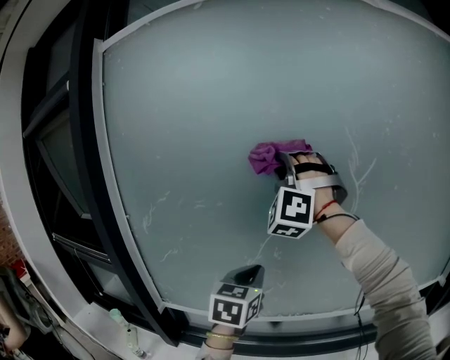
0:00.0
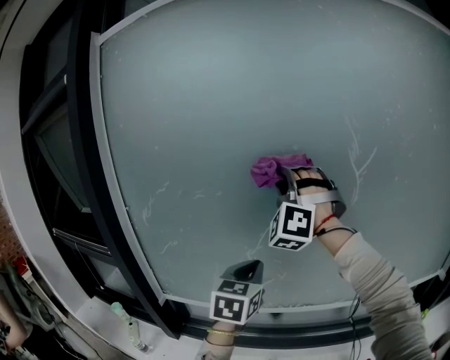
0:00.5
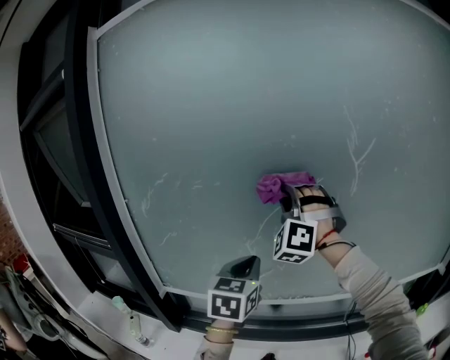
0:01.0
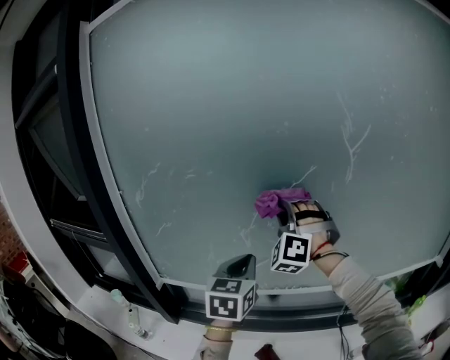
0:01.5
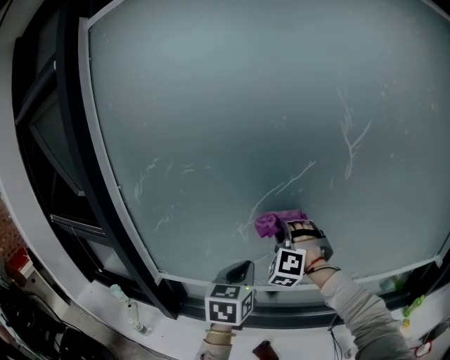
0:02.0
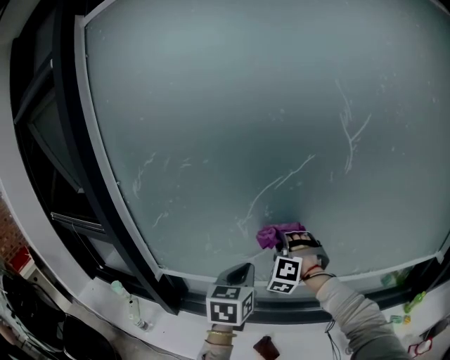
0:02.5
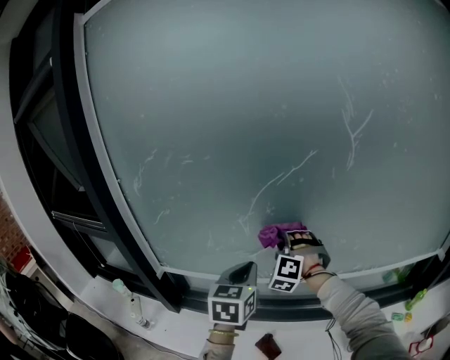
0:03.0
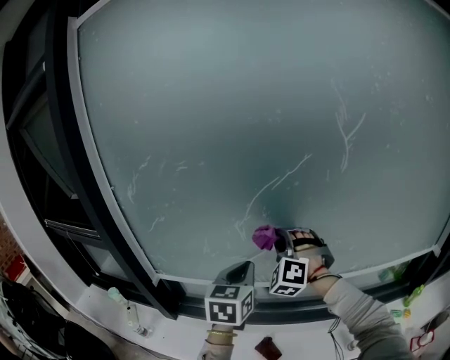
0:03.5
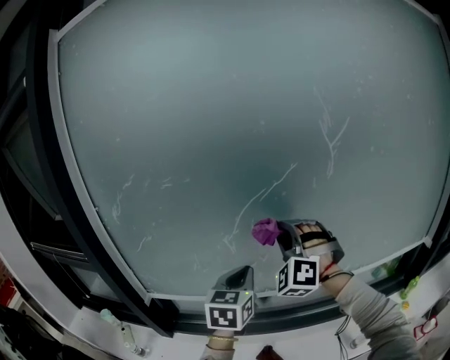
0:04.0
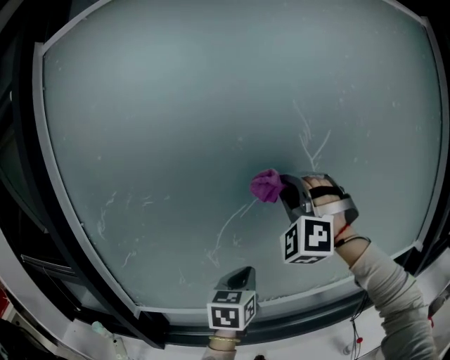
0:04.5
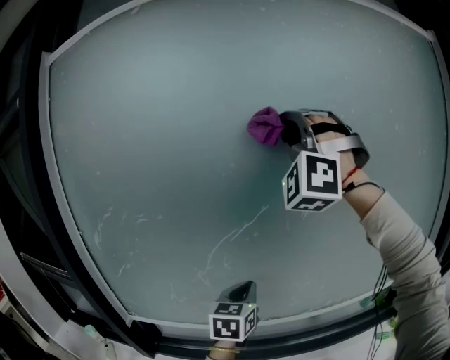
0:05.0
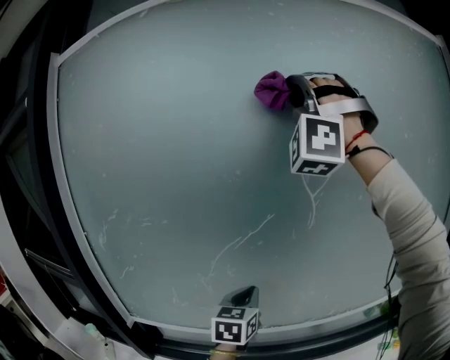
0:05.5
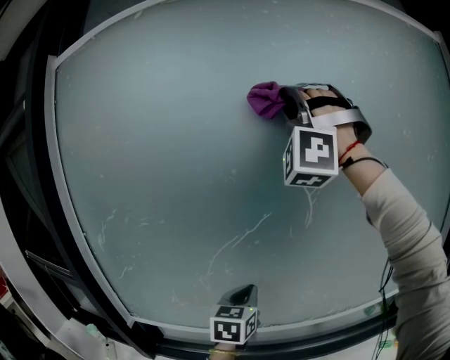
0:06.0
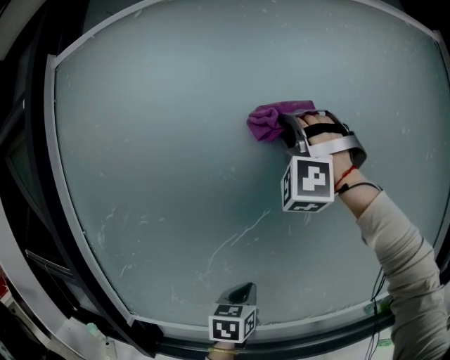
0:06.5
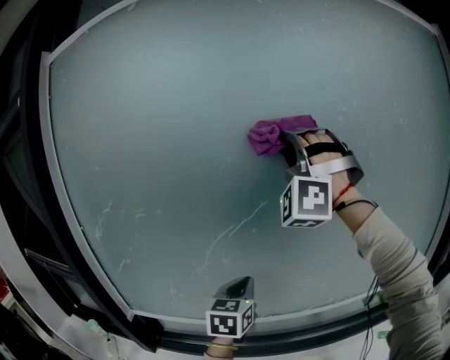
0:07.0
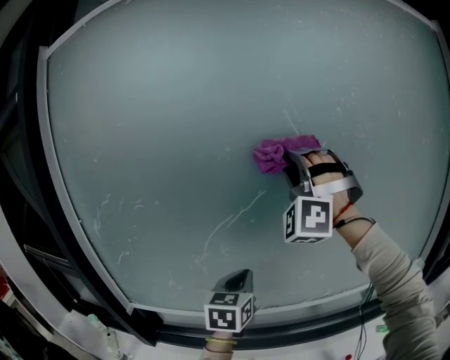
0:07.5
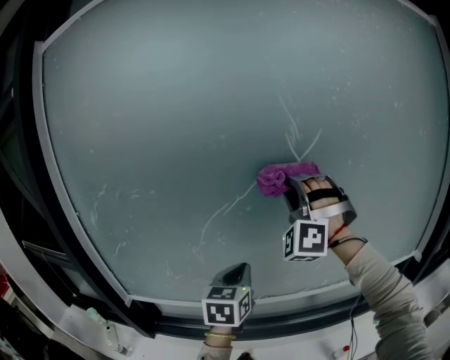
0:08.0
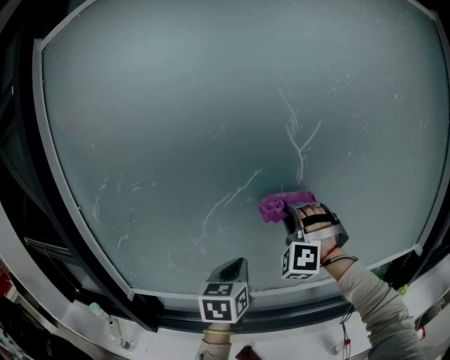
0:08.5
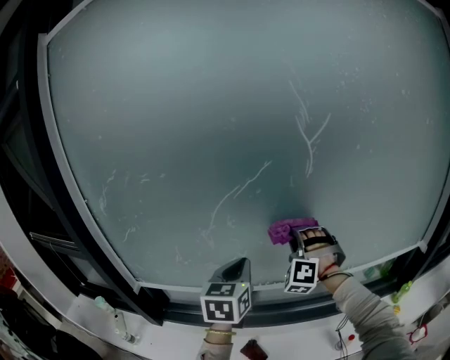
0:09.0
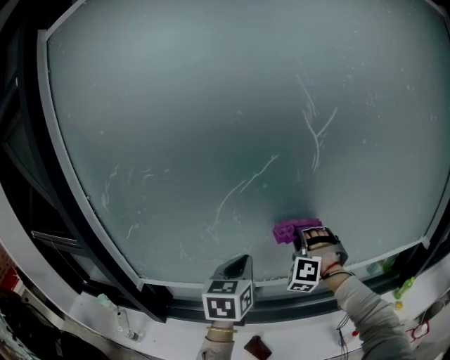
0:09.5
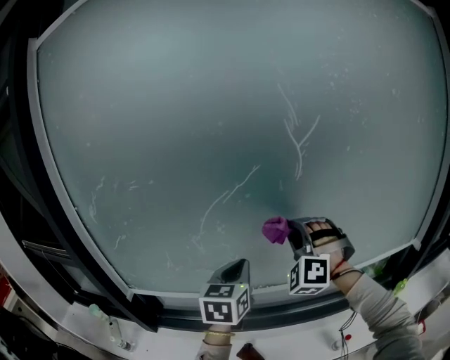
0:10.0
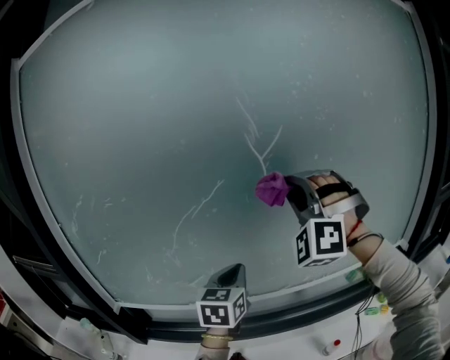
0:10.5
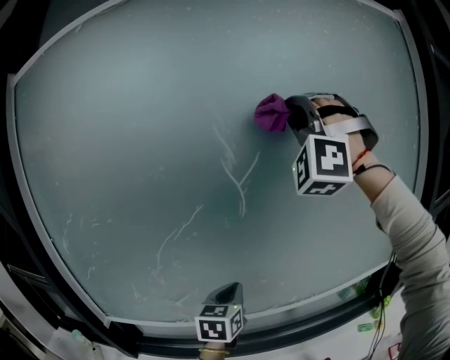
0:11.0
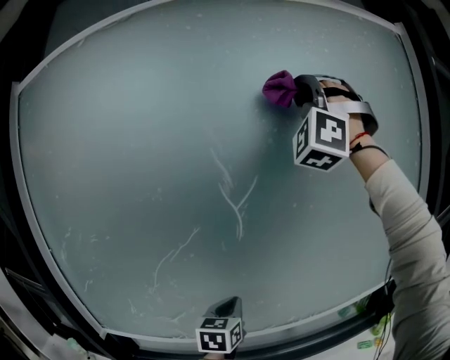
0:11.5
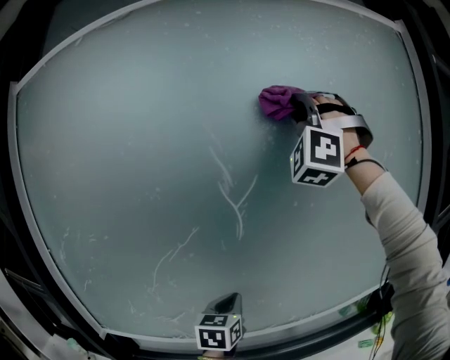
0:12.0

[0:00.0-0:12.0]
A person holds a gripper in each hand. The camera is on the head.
0:00.0 to 0:02.0: The right gripper shifts about 30 cm downward, and turns by some 30 degrees. Meanwhile the left gripper goes about 10 cm downward.
0:02.0 to 0:04.0: The right gripper reaches roughly 10 cm downward, then returns.
0:04.0 to 0:06.0: The left gripper shifts roughly 10 cm to the right and forward; the right gripper heads upward, covering roughly 40 cm, and angles its fingers upward, by about 40 degrees.
0:06.0 to 0:08.0: The right gripper heads downward, covering about 30 cm, and turns by roughly 20 degrees.
0:08.0 to 0:10.0: The right gripper travels downward by approximately 15 cm.
0:10.0 to 0:12.0: The right gripper shifts some 50 cm upward and to the right, and tips its fingers upward by approximately 40 degrees, while the left gripper travels to the right and forward by some 15 cm.

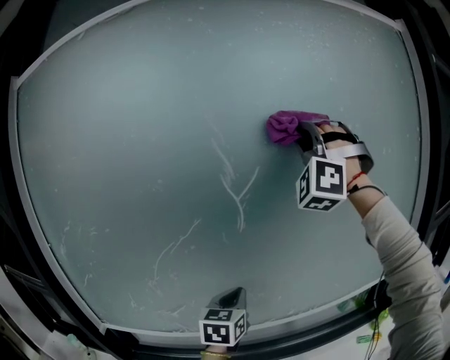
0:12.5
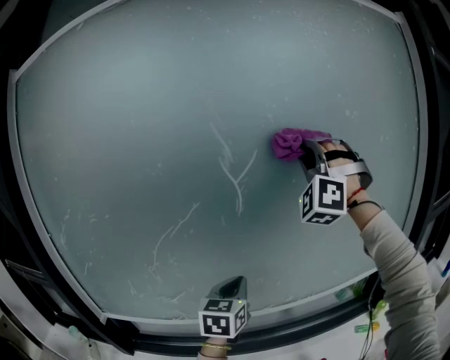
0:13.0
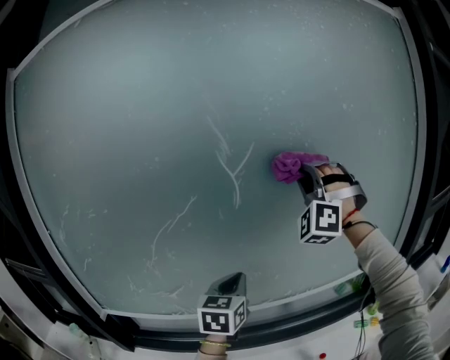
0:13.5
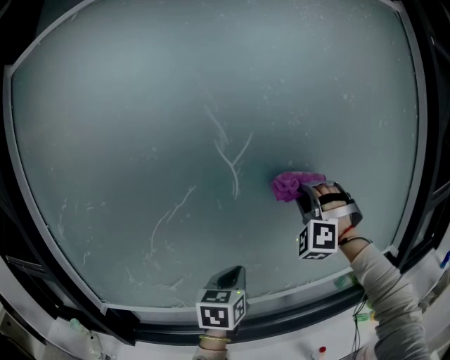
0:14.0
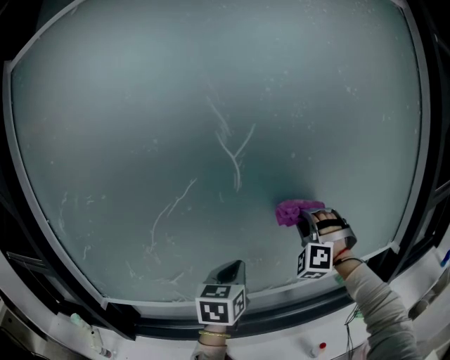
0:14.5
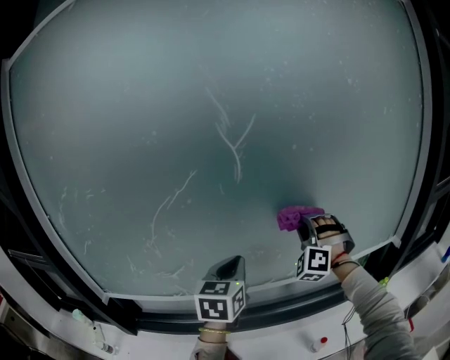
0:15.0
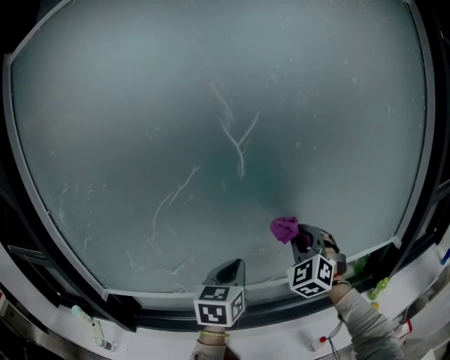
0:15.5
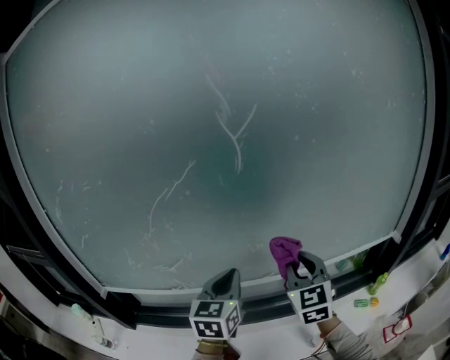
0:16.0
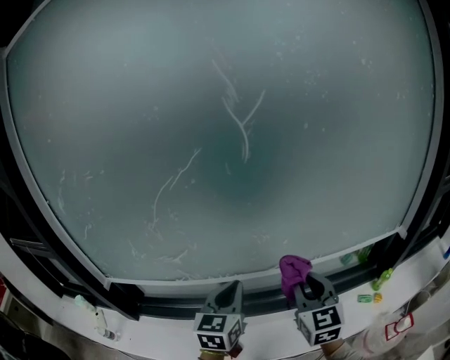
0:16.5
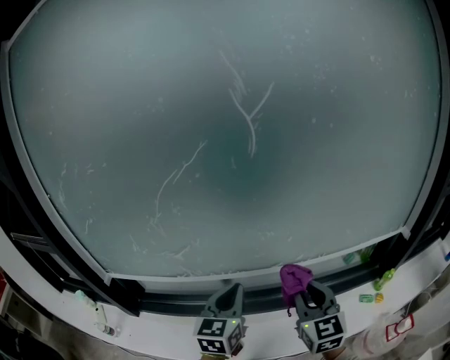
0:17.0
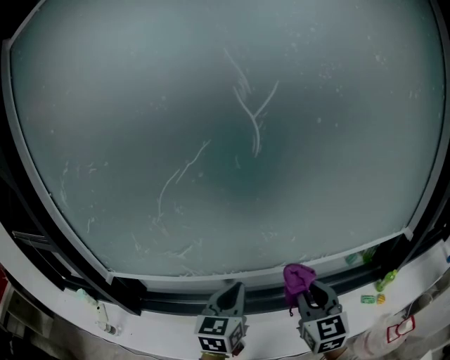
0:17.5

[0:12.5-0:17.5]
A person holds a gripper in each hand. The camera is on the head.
0:12.5 to 0:15.0: The right gripper heads downward, covering roughly 40 cm, and turns by about 30 degrees.
0:15.0 to 0:17.5: The right gripper goes approximately 20 cm backward and downward, and rolls clockwise, seen from behind, by approximately 80 degrees. The left gripper shifts about 15 cm downward and backward.

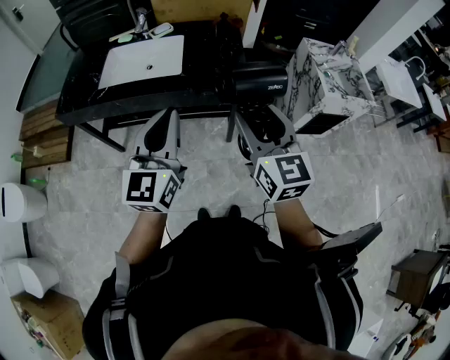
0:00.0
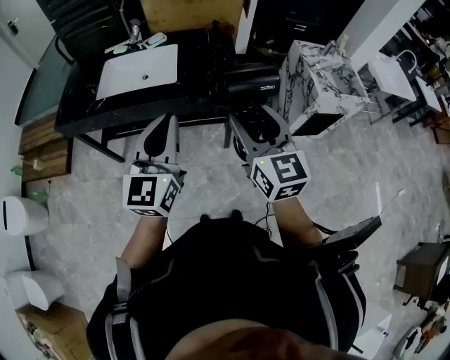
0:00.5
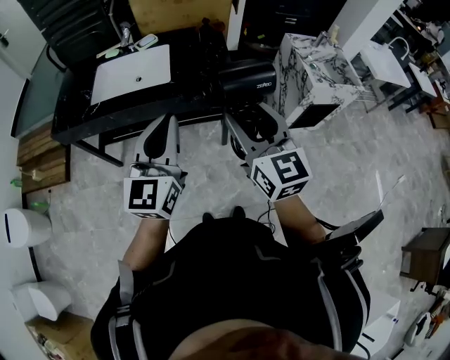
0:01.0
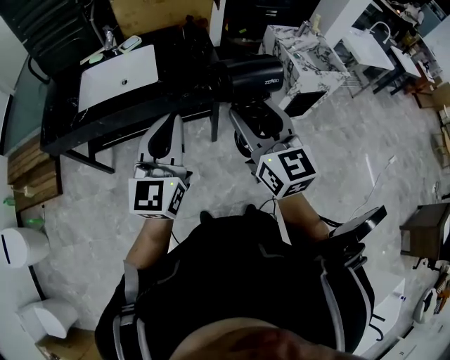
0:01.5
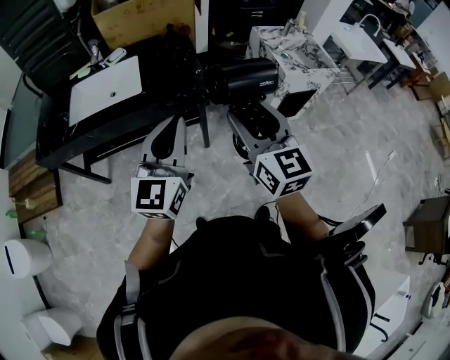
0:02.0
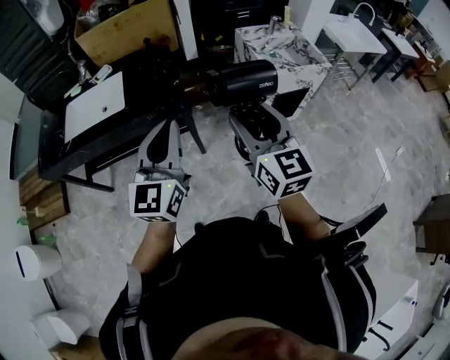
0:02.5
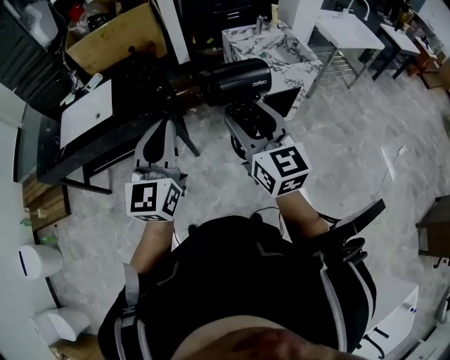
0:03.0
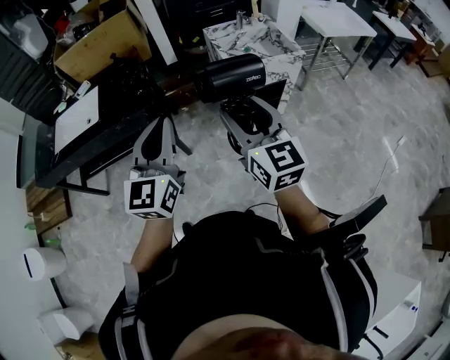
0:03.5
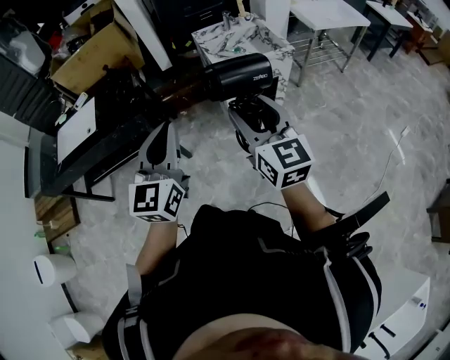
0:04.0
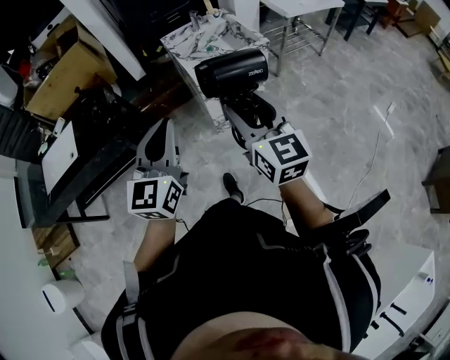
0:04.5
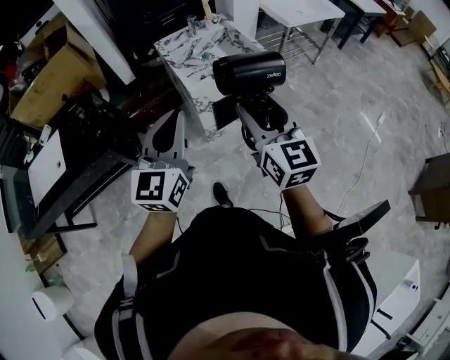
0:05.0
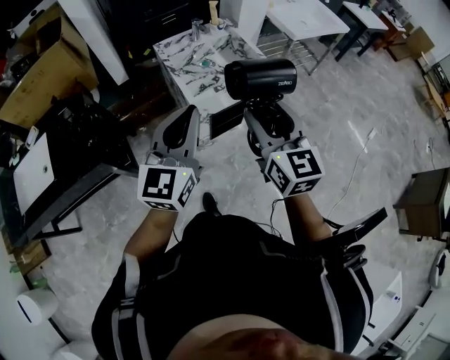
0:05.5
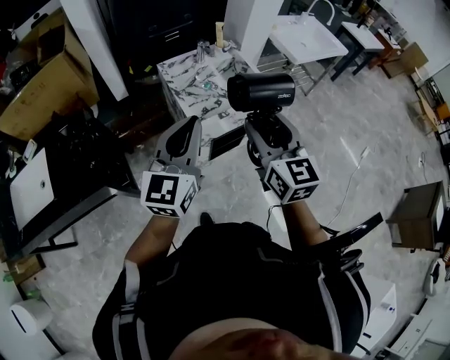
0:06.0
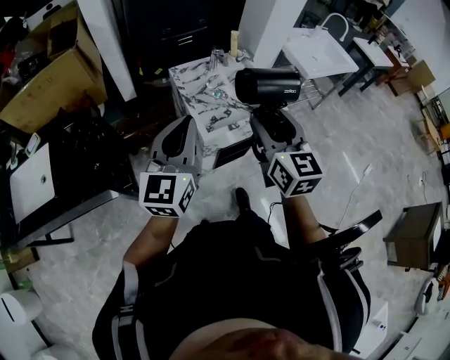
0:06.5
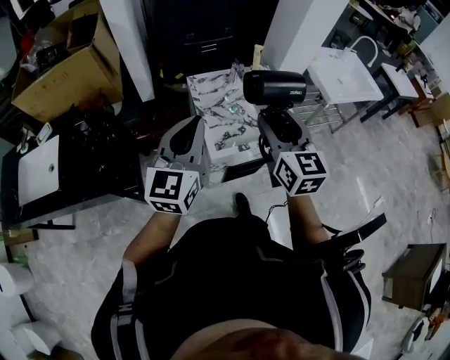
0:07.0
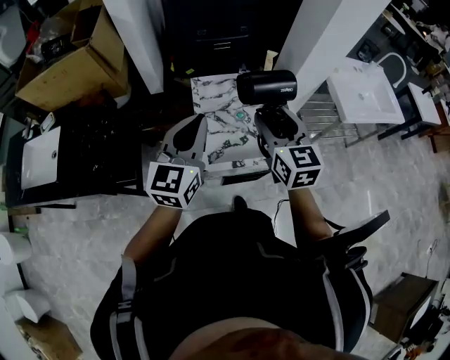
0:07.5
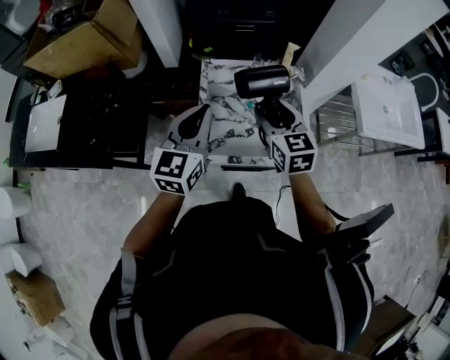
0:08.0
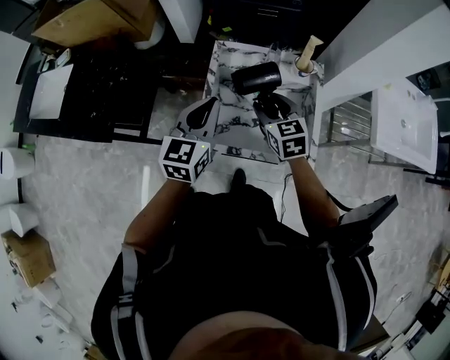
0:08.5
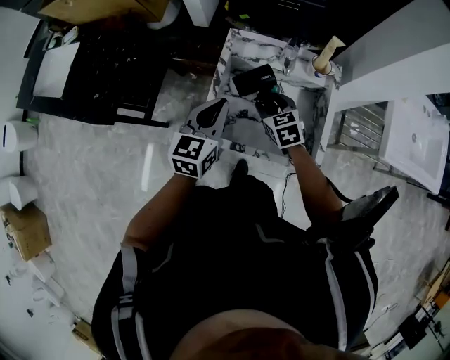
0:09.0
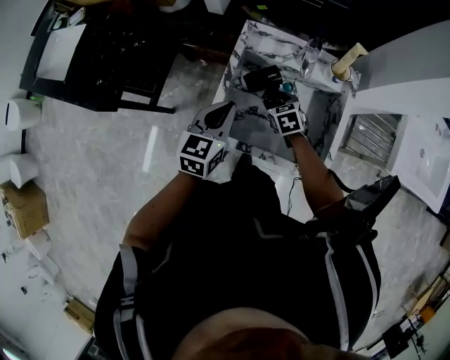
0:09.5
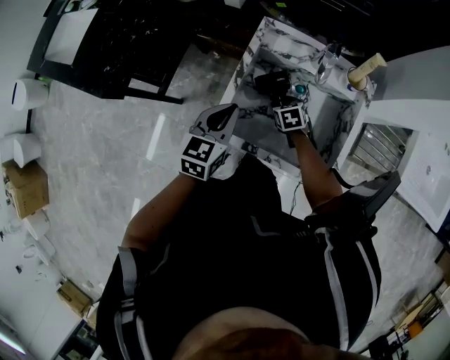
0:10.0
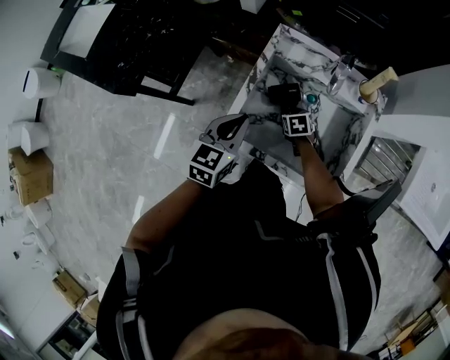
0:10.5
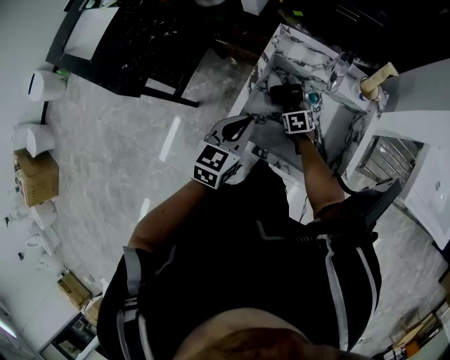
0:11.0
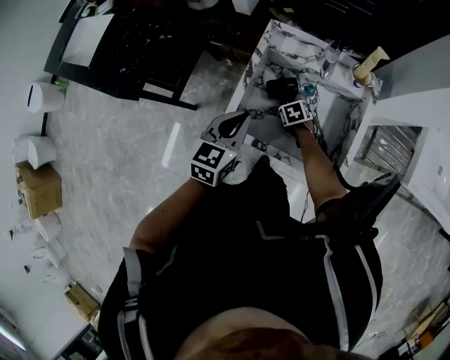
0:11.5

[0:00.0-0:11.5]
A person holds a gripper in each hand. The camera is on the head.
0:00.0 to 0:02.0: Both grippers move to the right, some 10 cm.
0:02.0 to 0:04.0: Both grippers move to the right, roughly 35 cm.
0:04.0 to 0:06.0: Both grippers move forward, roughly 30 cm.
0:06.0 to 0:07.5: The two grippers go some 25 cm forward.
0:07.5 to 0:09.5: The left gripper goes about 20 cm downward, and changes its angle by approximately 30 degrees, while the right gripper goes roughly 40 cm downward, and tips its fingers downward by about 40 degrees.
0:09.5 to 0:11.5: The right gripper travels downward by about 10 cm.
